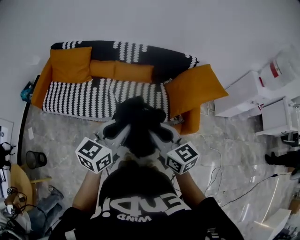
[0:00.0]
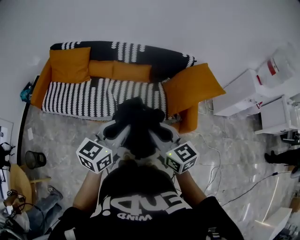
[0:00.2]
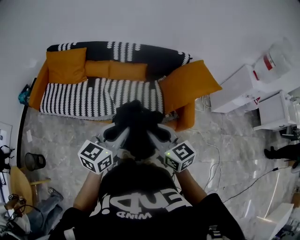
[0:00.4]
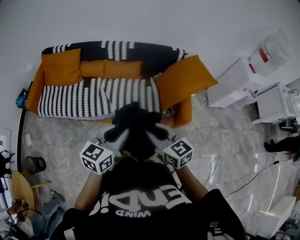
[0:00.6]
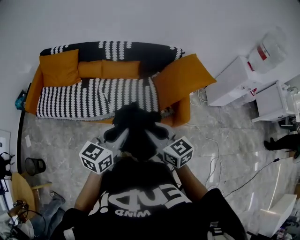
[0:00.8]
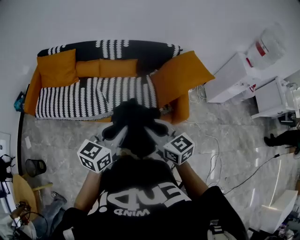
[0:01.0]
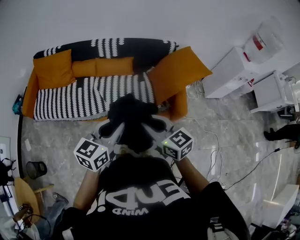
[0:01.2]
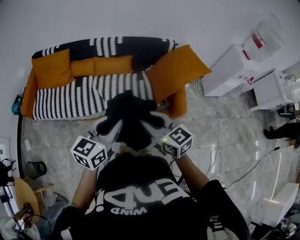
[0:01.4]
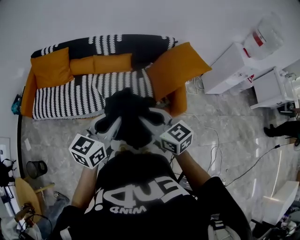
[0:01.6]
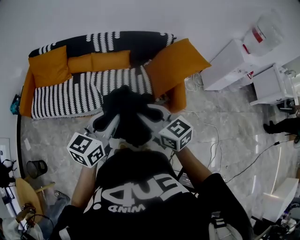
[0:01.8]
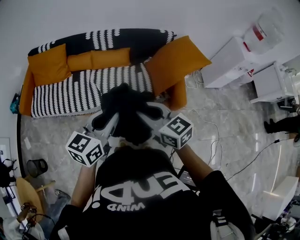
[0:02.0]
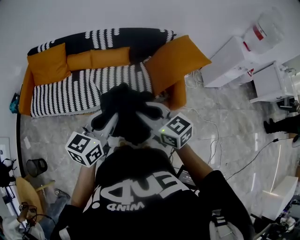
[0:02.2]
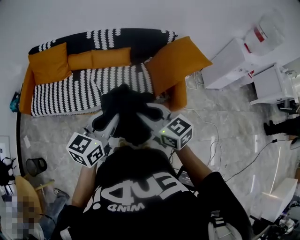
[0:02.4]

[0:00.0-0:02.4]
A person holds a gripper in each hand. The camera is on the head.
0:00.0 to 0:01.2: The grippers both shift to the right by about 5 cm.
0:01.2 to 0:02.4: There are only small adjustments of the grippers.

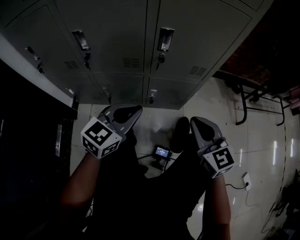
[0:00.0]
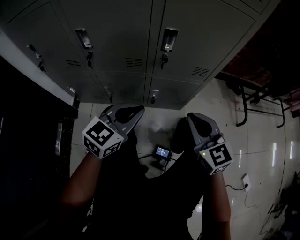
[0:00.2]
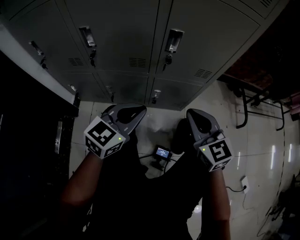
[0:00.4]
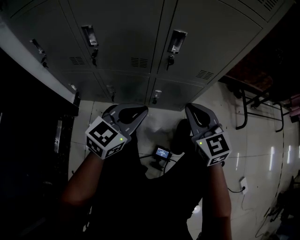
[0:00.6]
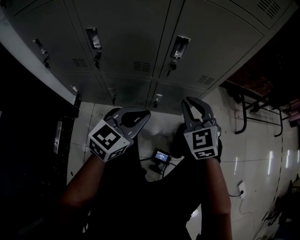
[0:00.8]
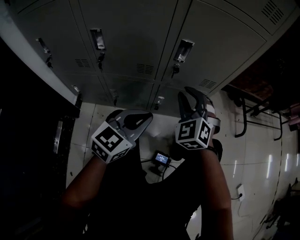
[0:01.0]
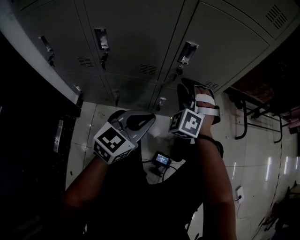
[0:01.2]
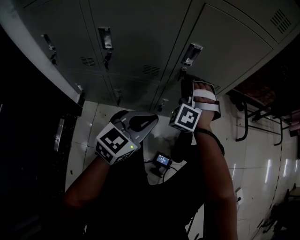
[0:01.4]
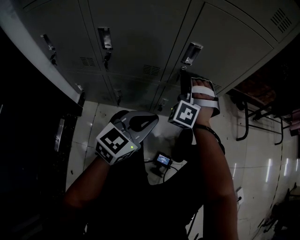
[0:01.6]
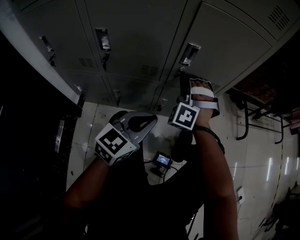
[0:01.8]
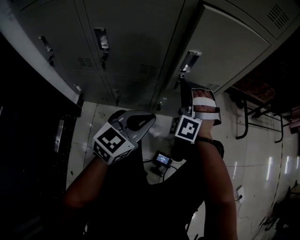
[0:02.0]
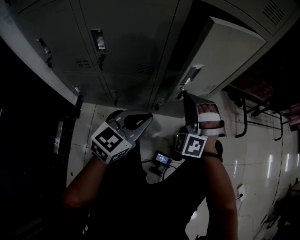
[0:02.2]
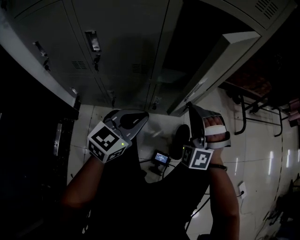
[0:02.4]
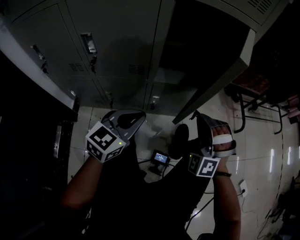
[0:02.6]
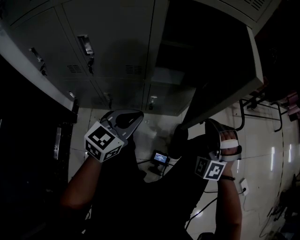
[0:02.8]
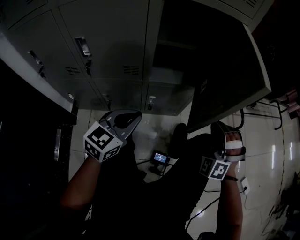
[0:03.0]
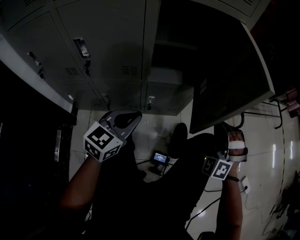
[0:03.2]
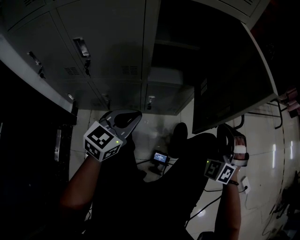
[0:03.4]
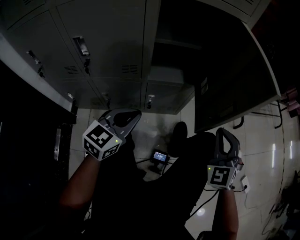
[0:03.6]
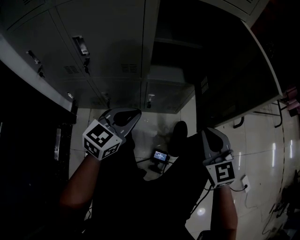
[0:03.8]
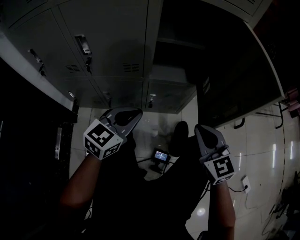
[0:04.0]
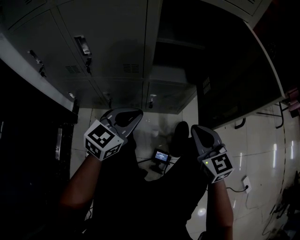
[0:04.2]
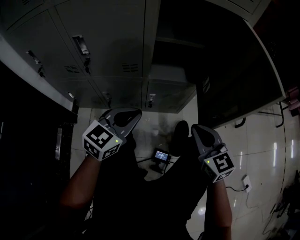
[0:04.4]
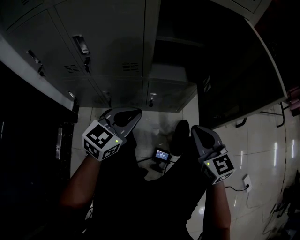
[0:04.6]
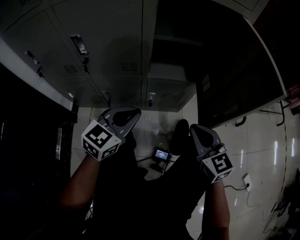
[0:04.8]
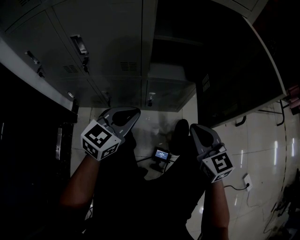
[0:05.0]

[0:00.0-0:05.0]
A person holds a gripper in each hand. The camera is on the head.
0:00.0 to 0:01.6: The right gripper heads forward and to the left, covering some 25 cm, and rolls counterclockwise, seen from behind, by approximately 70 degrees.
0:01.6 to 0:03.4: The right gripper shifts roughly 30 cm to the right.
0:03.4 to 0:05.0: The right gripper is displaced to the left by approximately 10 cm, and twists some 60 degrees clockwise, seen from behind.

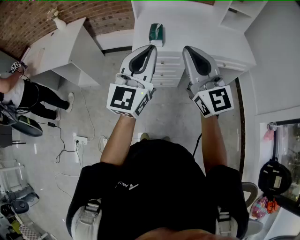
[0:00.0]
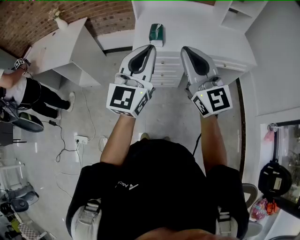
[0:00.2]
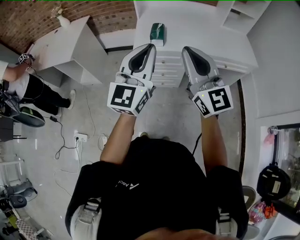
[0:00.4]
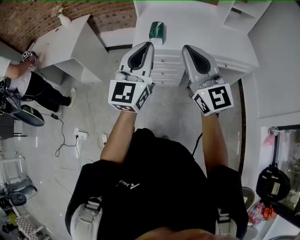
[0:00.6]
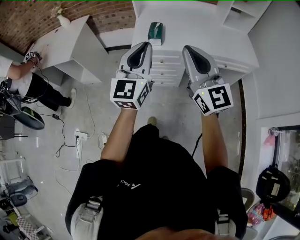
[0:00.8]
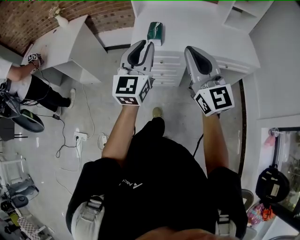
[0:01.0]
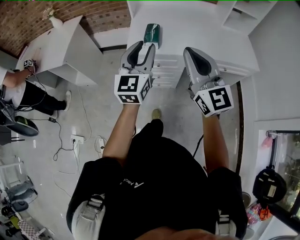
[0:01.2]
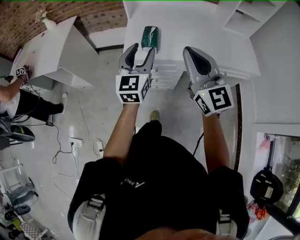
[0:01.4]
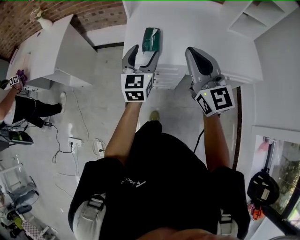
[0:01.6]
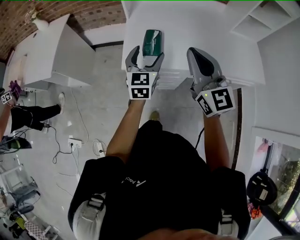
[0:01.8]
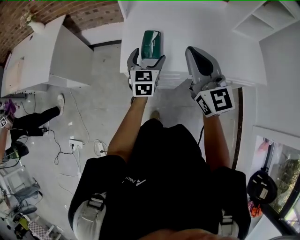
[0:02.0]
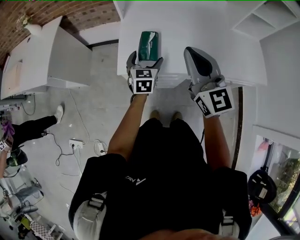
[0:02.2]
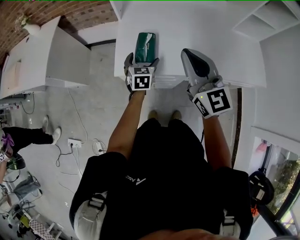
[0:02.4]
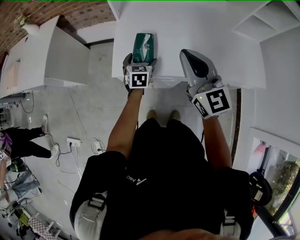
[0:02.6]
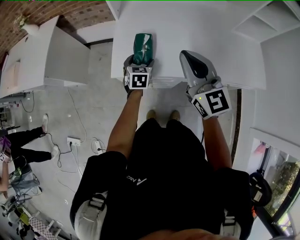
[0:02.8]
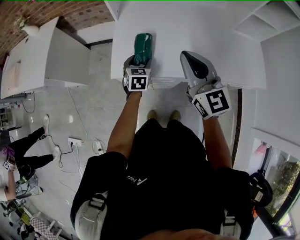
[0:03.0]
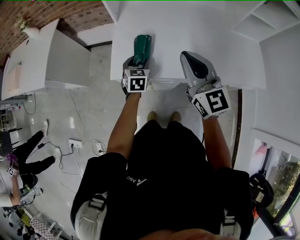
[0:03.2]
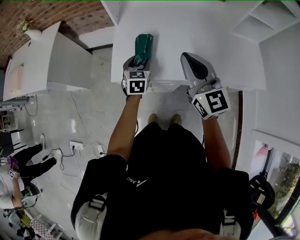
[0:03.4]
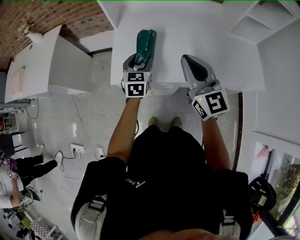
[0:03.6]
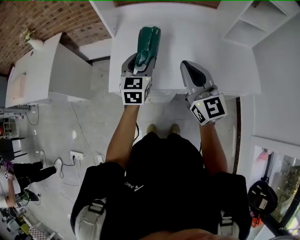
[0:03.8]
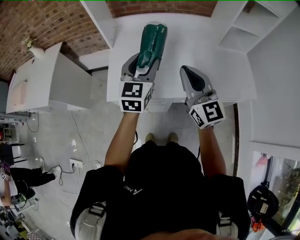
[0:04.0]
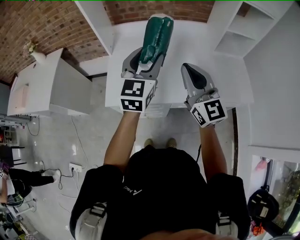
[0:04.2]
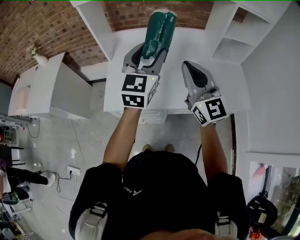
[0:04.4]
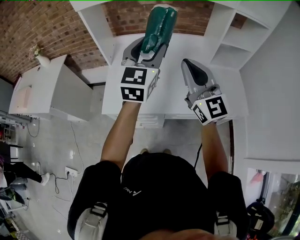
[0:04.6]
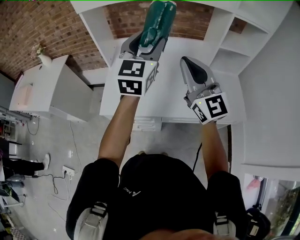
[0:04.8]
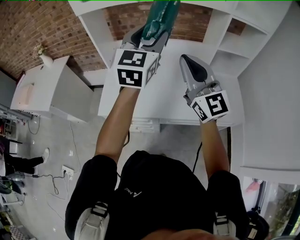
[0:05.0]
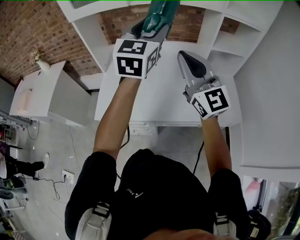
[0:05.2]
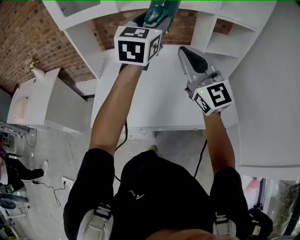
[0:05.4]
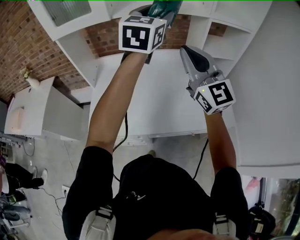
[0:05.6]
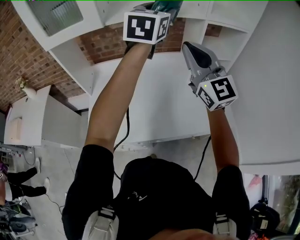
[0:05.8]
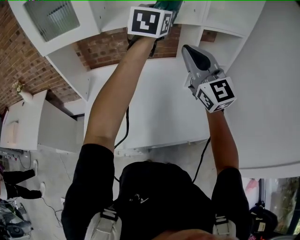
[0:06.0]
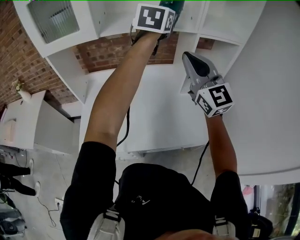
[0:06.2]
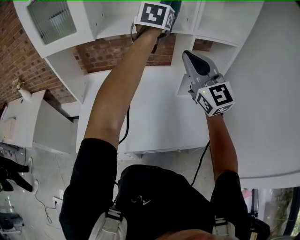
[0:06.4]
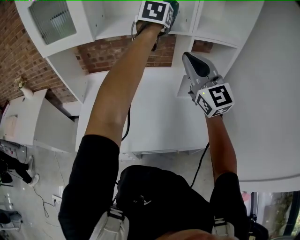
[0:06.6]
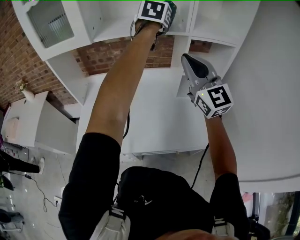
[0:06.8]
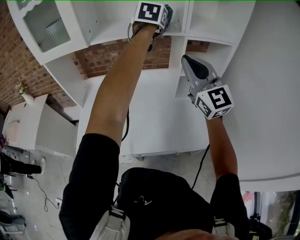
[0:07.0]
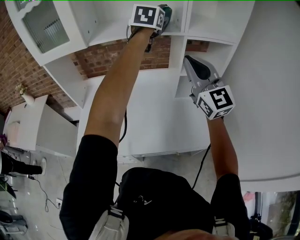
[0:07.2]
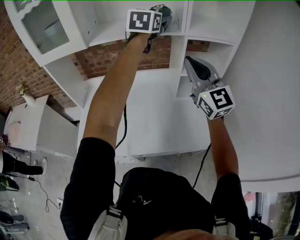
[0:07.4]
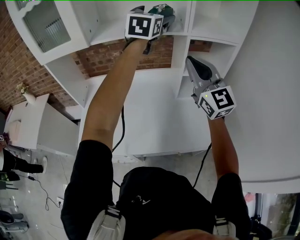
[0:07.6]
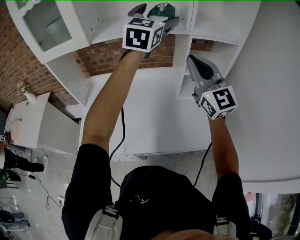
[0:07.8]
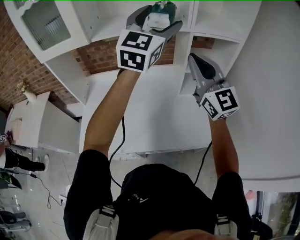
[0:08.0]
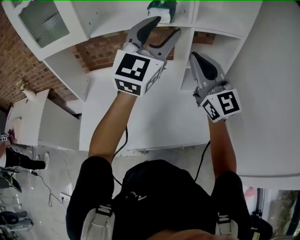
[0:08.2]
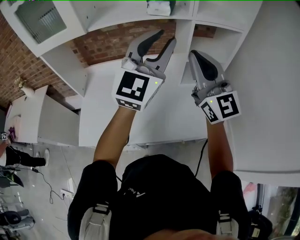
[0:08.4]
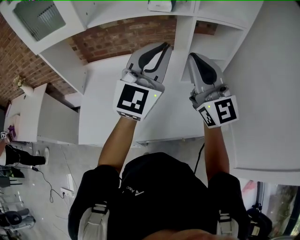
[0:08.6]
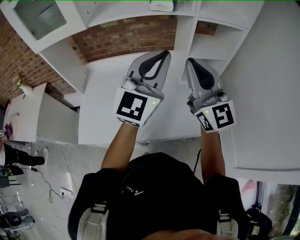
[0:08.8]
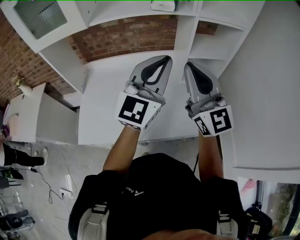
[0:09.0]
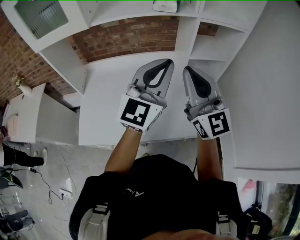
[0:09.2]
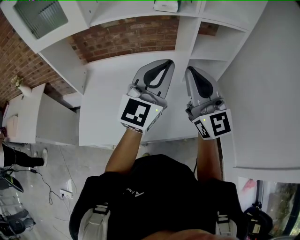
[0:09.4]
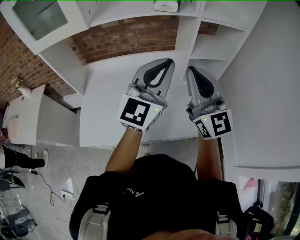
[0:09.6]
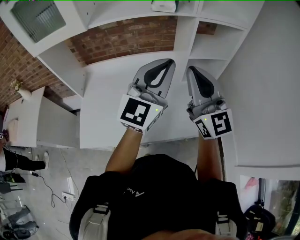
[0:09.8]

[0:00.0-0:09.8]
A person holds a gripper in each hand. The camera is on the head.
0:00.0 to 0:01.4: The left gripper moves forward and downward, approximately 25 cm, and opens its fingers, while the right gripper goes some 15 cm forward.
0:01.4 to 0:02.8: The left gripper is displaced downward and forward by roughly 35 cm, and tips its fingers downward by roughly 40 degrees. Meanwhile the right gripper is displaced forward and downward by roughly 20 cm.
0:02.8 to 0:04.2: The left gripper heads upward and to the right, covering roughly 35 cm, and tips its fingers upward by about 40 degrees. The right gripper travels to the right and upward by about 15 cm.
0:04.2 to 0:05.6: Both grippers move upward, to the right and forward, about 30 cm.
0:05.6 to 0:07.0: The left gripper heads forward and to the right, covering about 20 cm, and swivels approximately 20 degrees, while the right gripper travels to the right by about 10 cm.
0:07.0 to 0:08.4: The left gripper goes about 20 cm backward, angles its fingers upward, by about 40 degrees, and opens, then closes again.
0:08.4 to 0:09.8: The right gripper changes place by some 5 cm, while the left gripper shifts approximately 5 cm downward.

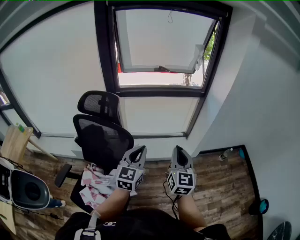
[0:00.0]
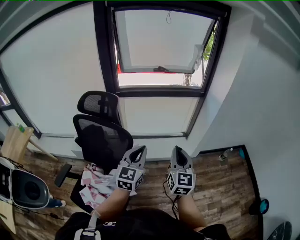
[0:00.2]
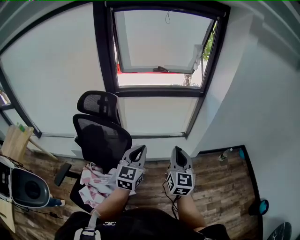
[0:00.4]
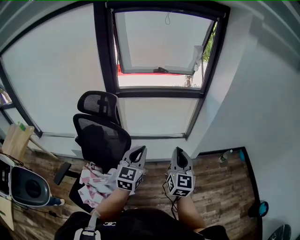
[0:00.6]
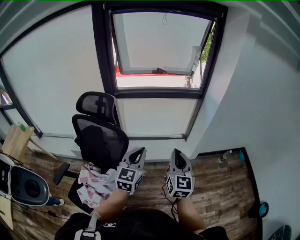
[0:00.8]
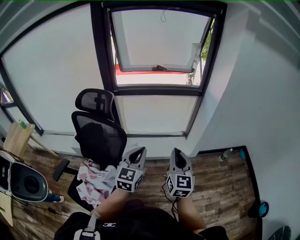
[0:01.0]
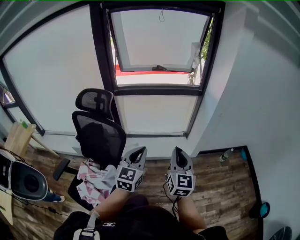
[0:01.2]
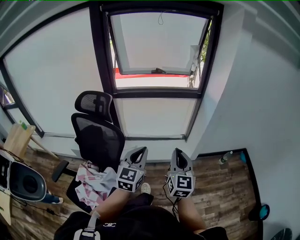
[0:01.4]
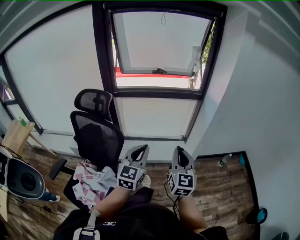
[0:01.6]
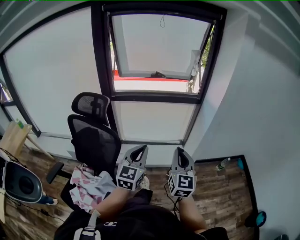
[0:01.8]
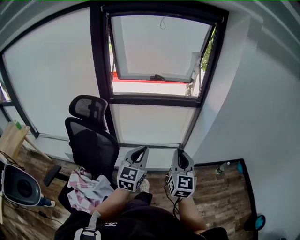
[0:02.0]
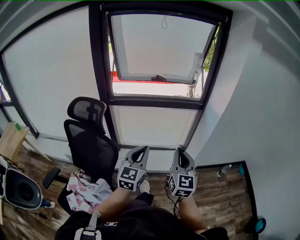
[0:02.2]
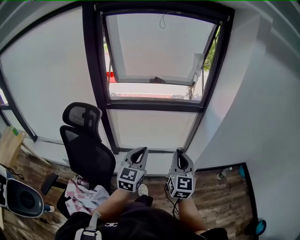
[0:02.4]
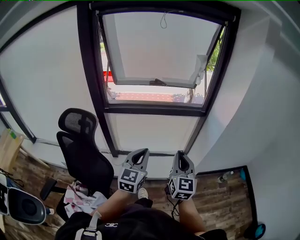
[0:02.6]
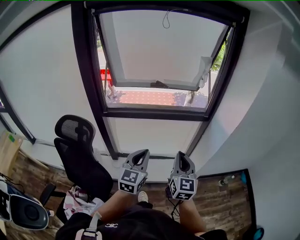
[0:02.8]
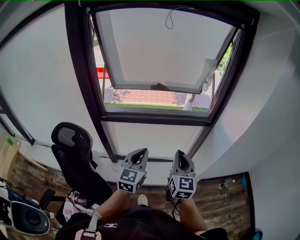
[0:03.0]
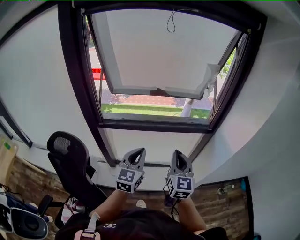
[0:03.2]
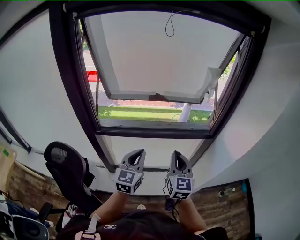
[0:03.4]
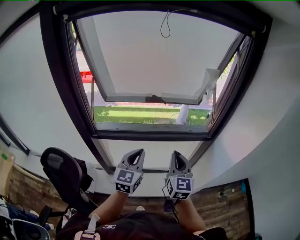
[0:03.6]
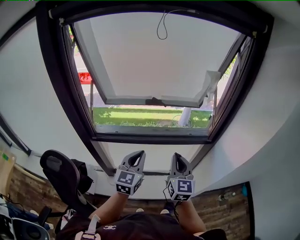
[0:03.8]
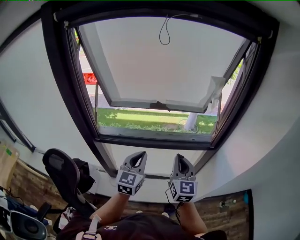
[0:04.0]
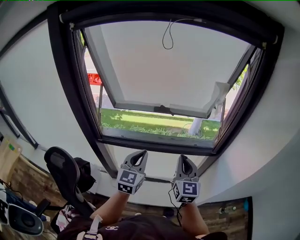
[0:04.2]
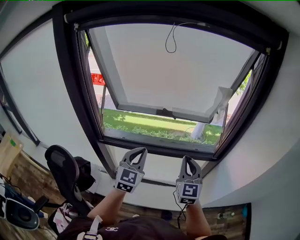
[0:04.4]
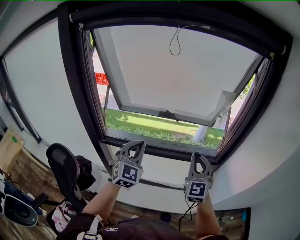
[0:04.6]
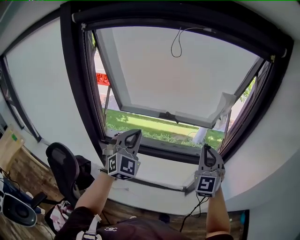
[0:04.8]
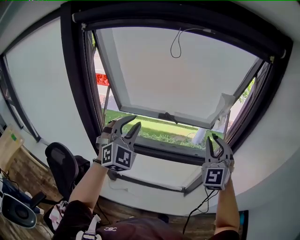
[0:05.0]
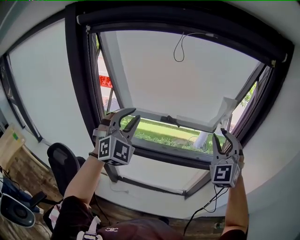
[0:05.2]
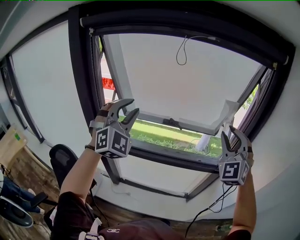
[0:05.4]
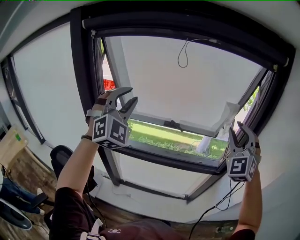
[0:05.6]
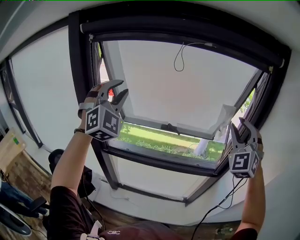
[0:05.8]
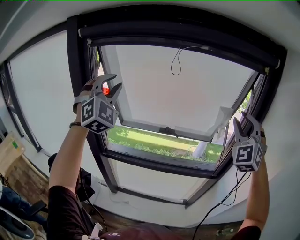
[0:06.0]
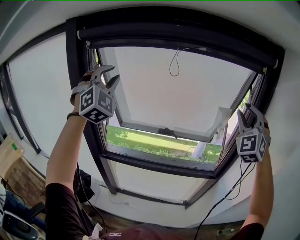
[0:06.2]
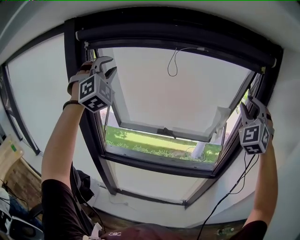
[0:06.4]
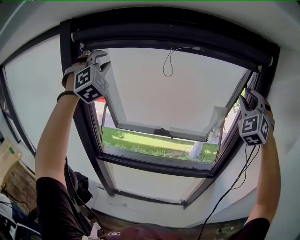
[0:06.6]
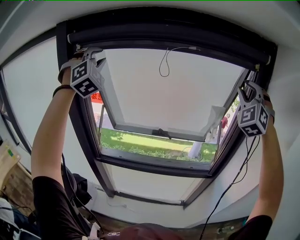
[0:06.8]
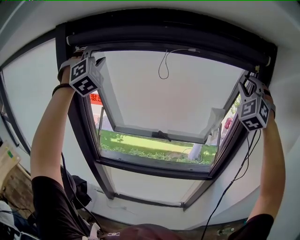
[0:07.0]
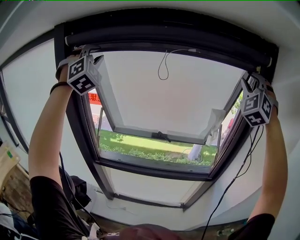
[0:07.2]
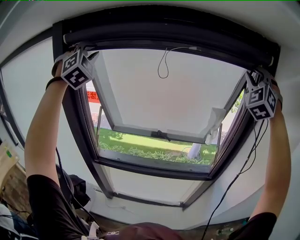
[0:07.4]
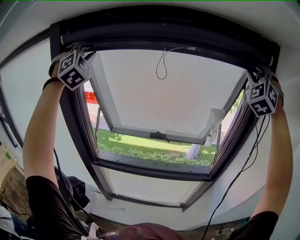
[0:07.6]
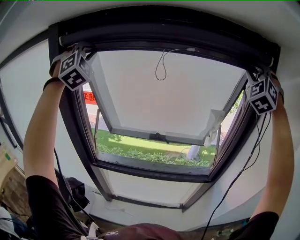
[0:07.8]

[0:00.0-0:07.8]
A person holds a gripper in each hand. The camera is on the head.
0:00.0 to 0:01.6: The two grippers go approximately 10 cm to the right.
0:01.6 to 0:03.2: The two grippers travel together, forward, approximately 40 cm.
0:03.2 to 0:04.6: The right gripper heads forward, upward and to the right, covering roughly 20 cm, and changes its angle by approximately 30 degrees; the left gripper moves forward and upward, some 15 cm, and rotates roughly 30 degrees.
0:04.6 to 0:06.2: The grippers both shift upward by approximately 30 cm. The left gripper swivels approximately 40 degrees, and opens. Meanwhile the right gripper turns by approximately 40 degrees, and opens its fingers.
0:06.2 to 0:07.8: The grippers both shift upward and forward by roughly 15 cm.
